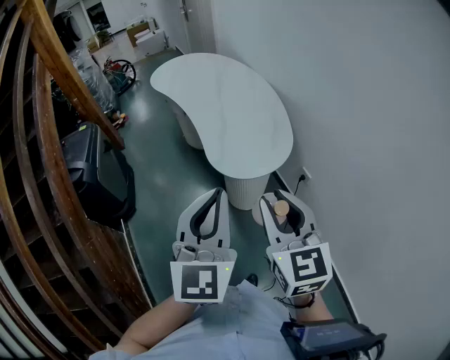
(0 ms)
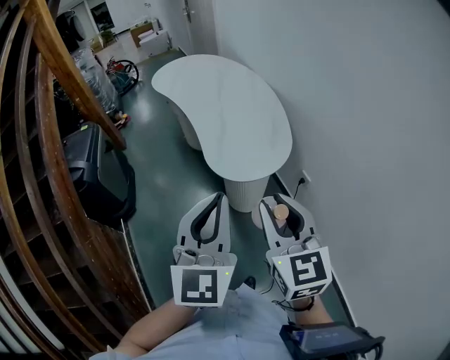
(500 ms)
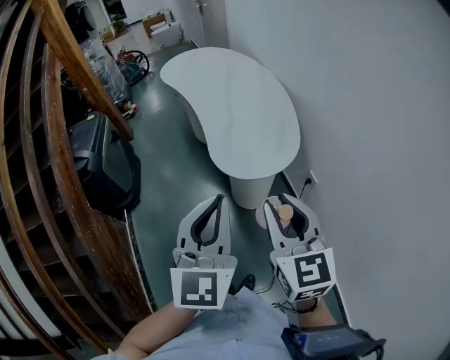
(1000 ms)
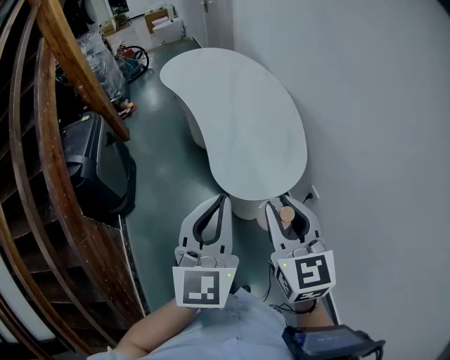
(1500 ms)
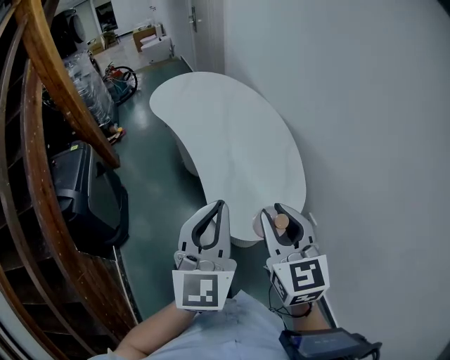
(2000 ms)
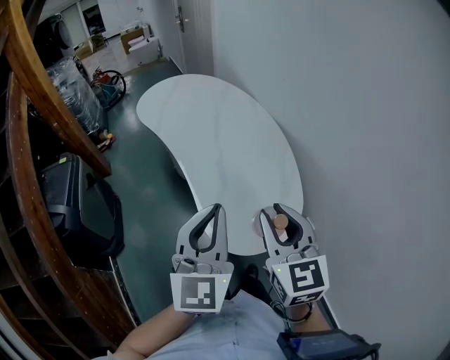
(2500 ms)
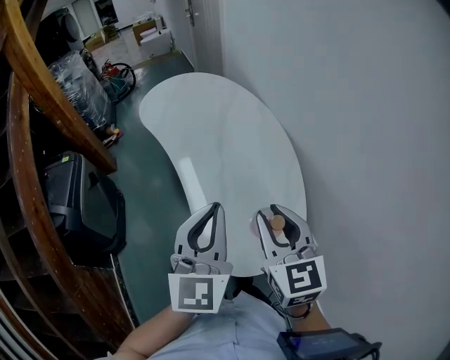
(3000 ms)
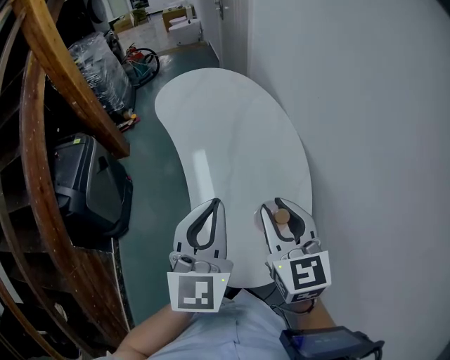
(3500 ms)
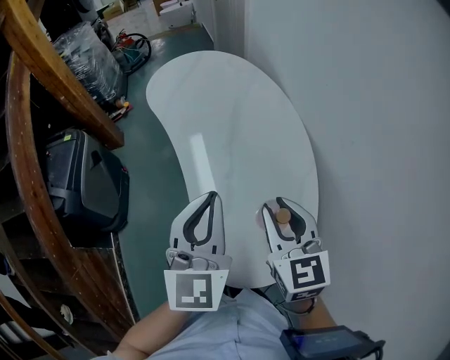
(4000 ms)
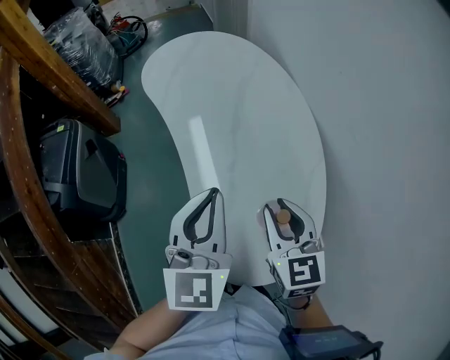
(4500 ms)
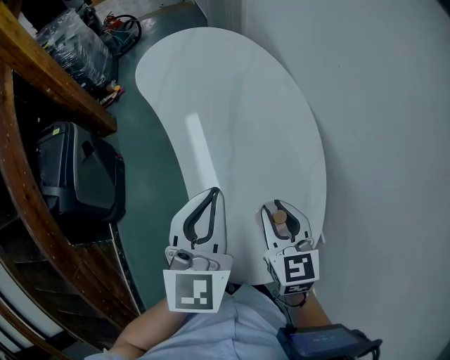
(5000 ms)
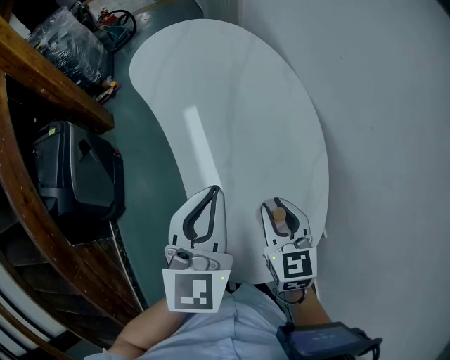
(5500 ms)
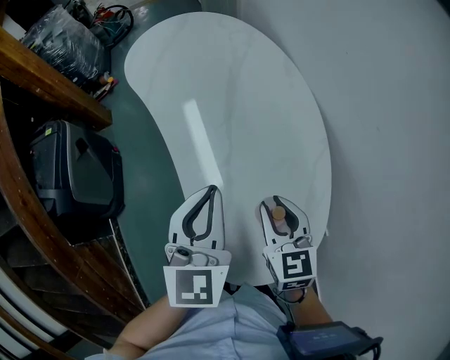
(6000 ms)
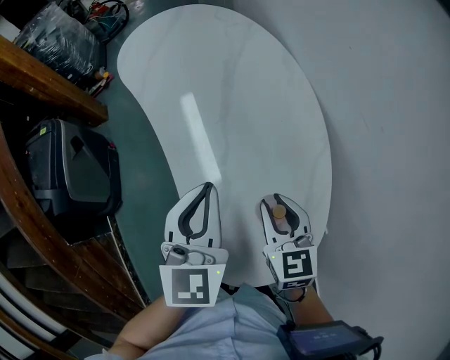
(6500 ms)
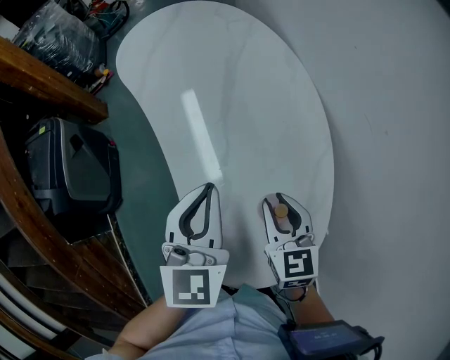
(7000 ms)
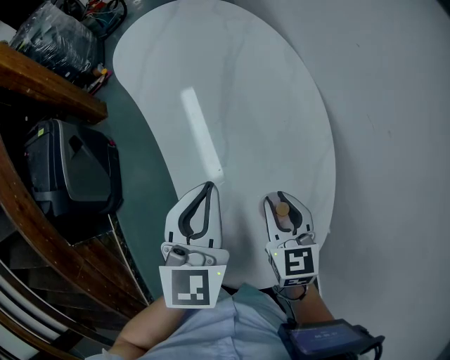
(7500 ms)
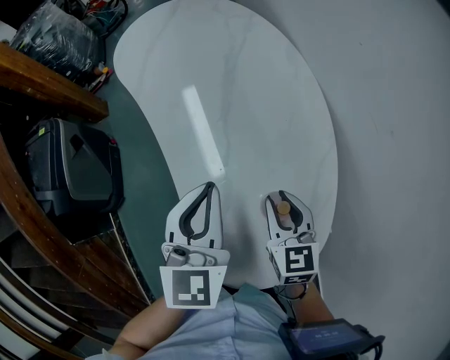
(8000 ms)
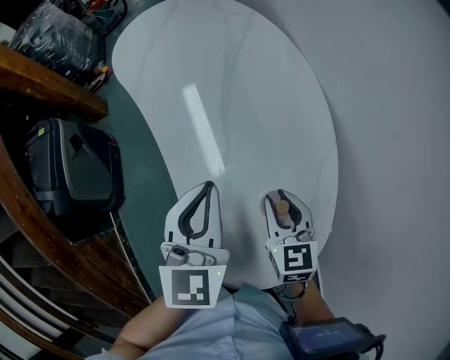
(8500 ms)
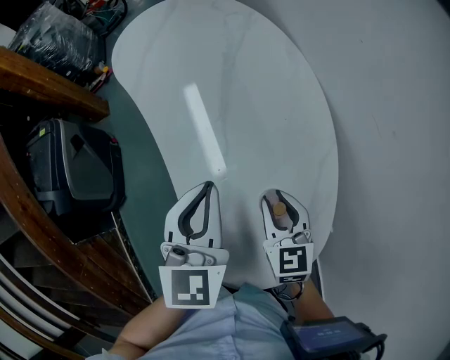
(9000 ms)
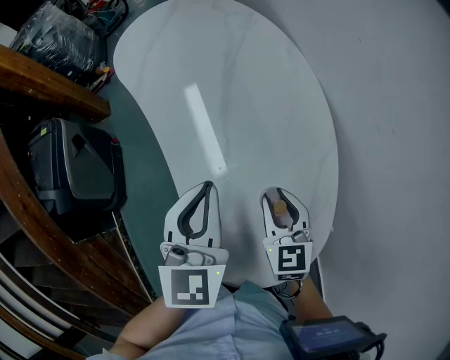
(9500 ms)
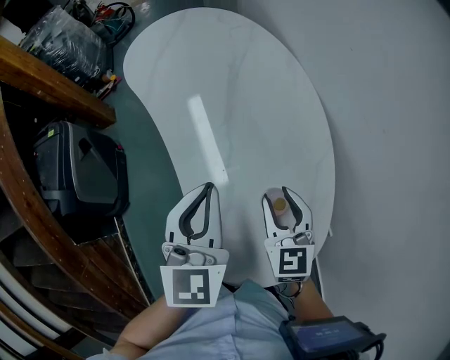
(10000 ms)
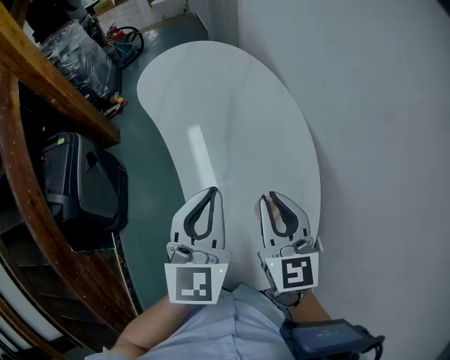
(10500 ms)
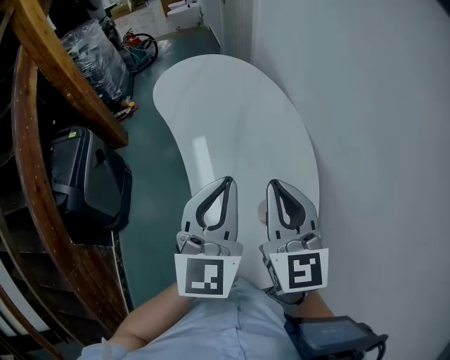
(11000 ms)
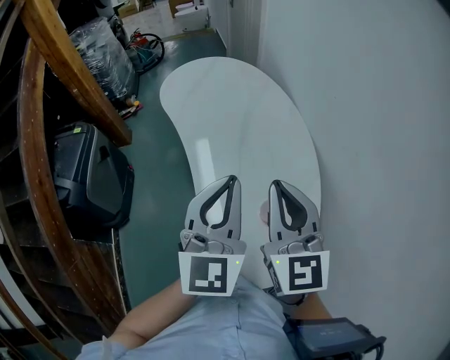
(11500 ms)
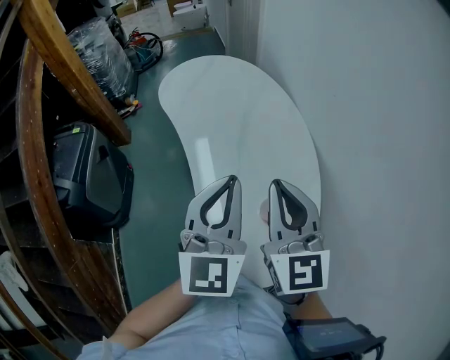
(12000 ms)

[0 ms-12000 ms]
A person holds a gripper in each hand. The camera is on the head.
0 ms to 2000 ms: Both grippers travel together forward, about 15 cm.
2000 ms to 4000 ms: Both grippers move forward, about 20 cm.
4000 ms to 6000 ms: The right gripper goes about 10 cm downward. The left gripper goes roughly 5 cm downward.
6000 ms to 10000 ms: There are only small adjustments of the grippers.
10000 ms to 12000 ms: The left gripper is displaced upward by some 10 cm, and swivels some 30 degrees. The right gripper shifts roughly 20 cm upward, swivels about 20 degrees, and closes.

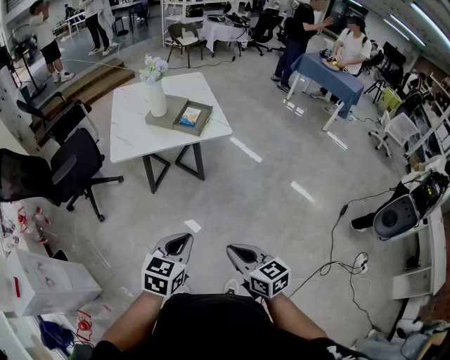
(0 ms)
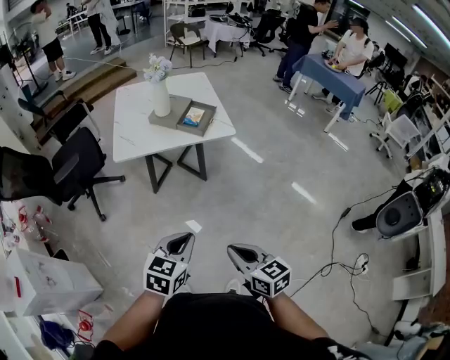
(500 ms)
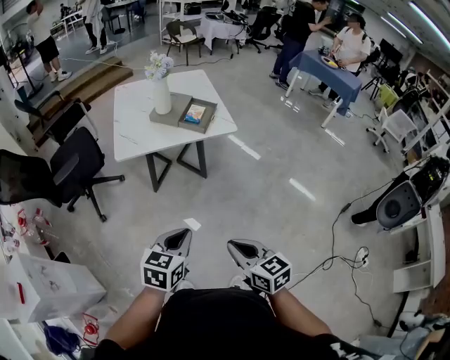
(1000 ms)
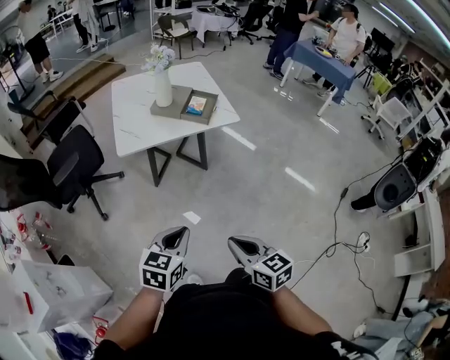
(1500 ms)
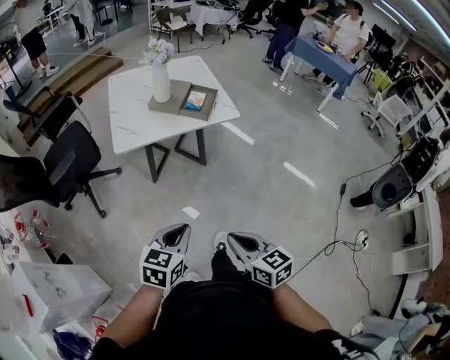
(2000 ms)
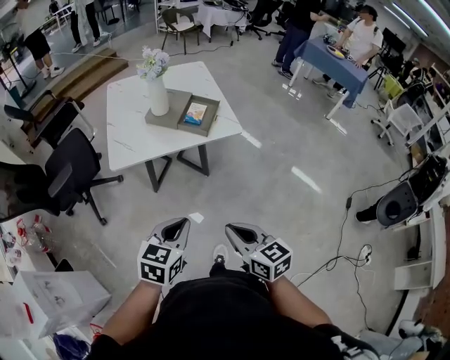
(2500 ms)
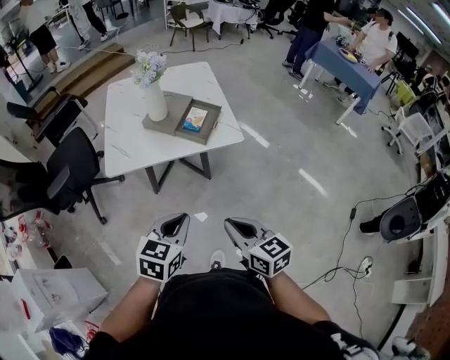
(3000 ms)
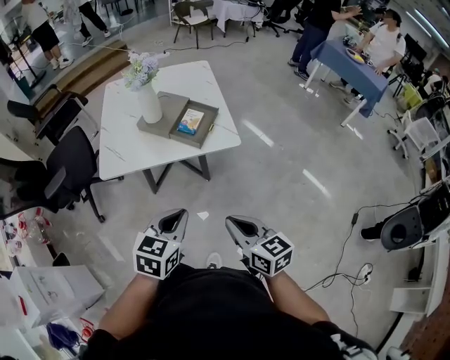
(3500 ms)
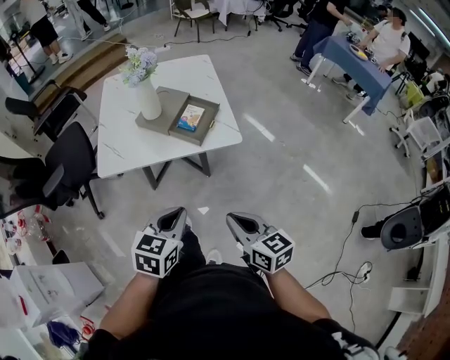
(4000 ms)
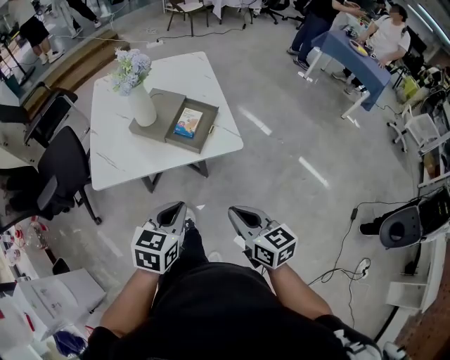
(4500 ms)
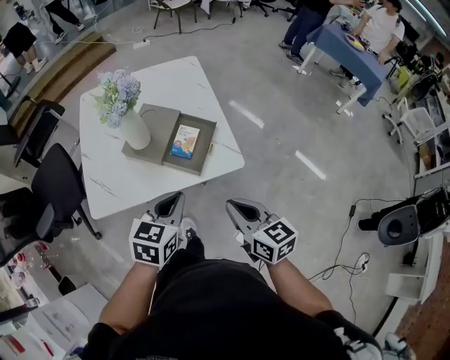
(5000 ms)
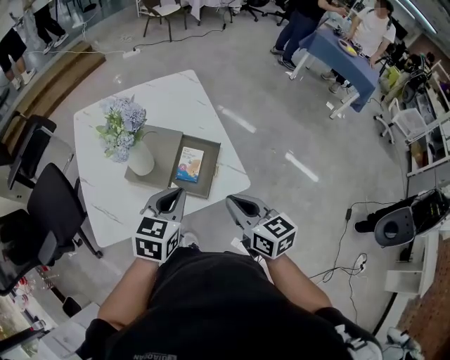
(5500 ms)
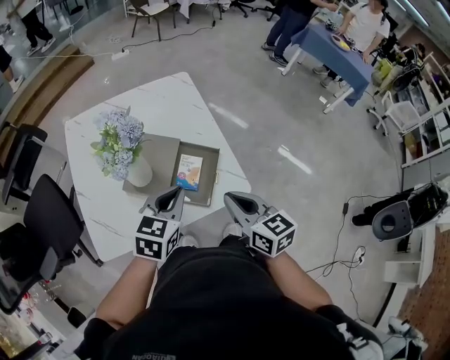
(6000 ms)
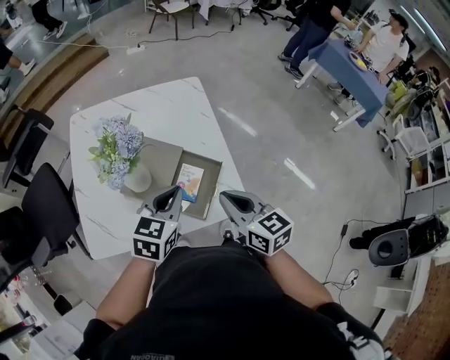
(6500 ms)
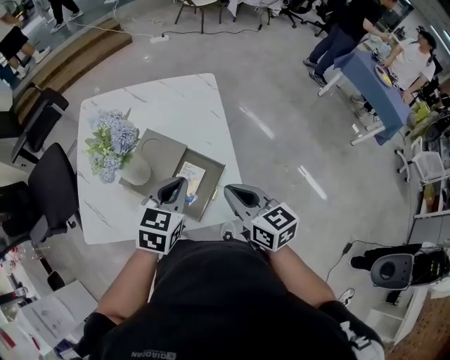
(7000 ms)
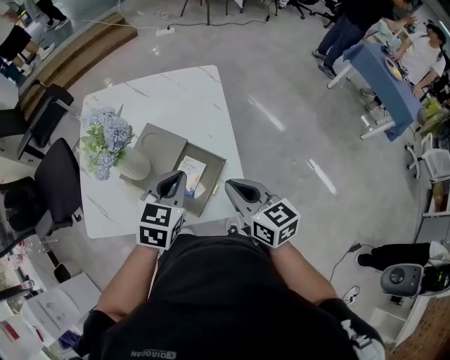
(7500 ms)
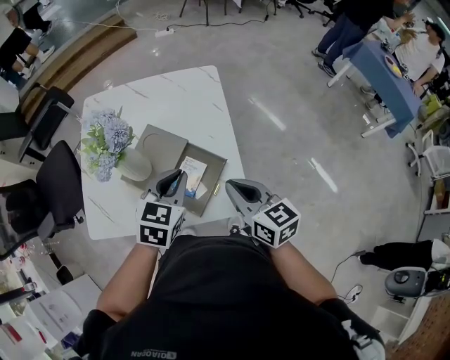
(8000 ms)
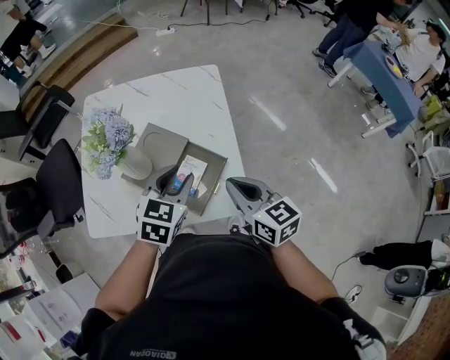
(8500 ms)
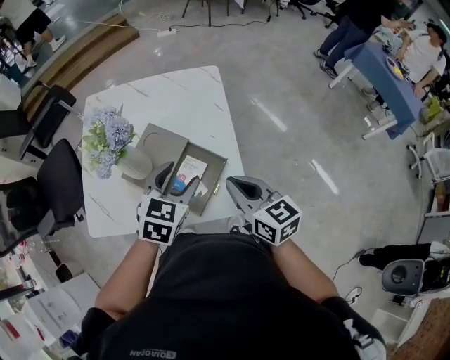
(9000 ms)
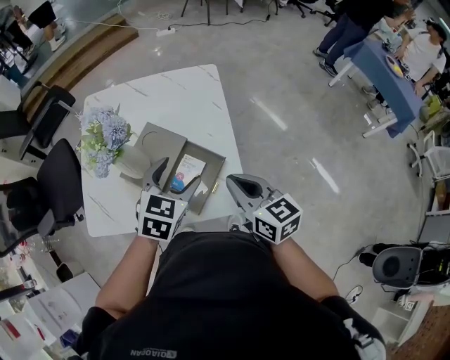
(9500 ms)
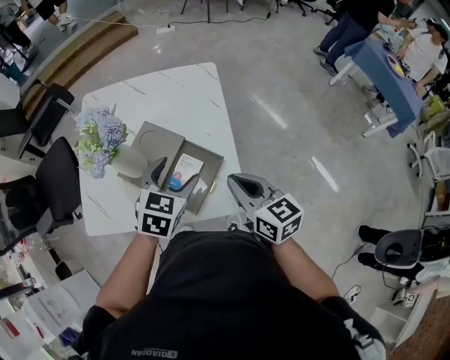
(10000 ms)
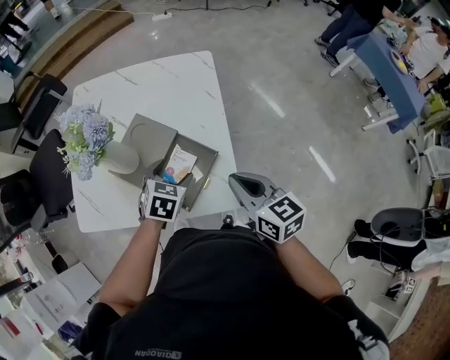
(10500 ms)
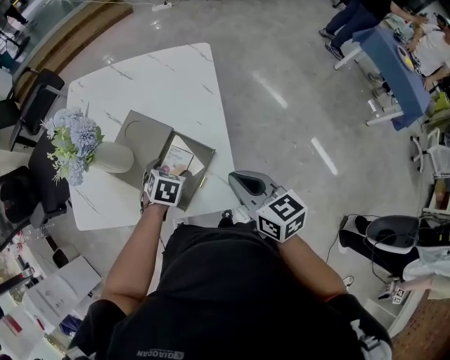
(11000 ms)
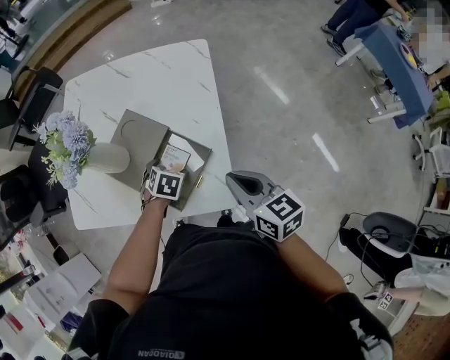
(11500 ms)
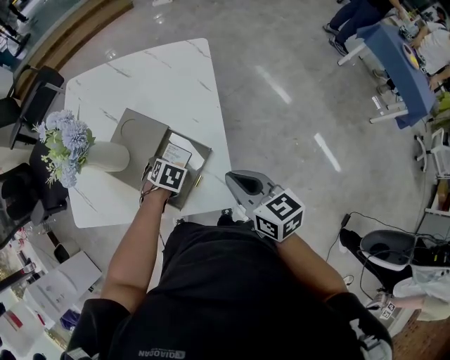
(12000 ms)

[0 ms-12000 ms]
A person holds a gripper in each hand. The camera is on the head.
0 ms to 2000 ms: The grippers both shift to the left by roughly 10 cm.
2000 ms to 4000 ms: The grippers both shift forward and to the right by approximately 30 cm.
4000 ms to 6000 ms: The grippers both shift forward by some 35 cm.
6000 ms to 8000 ms: The grippers both shift forward and to the right by roughly 10 cm.
8000 ms to 10000 ms: The left gripper opens.
10000 ms to 12000 ms: The right gripper moves about 5 cm. The left gripper goes approximately 25 cm downward, and tilts its fingers roughly 40 degrees downward.

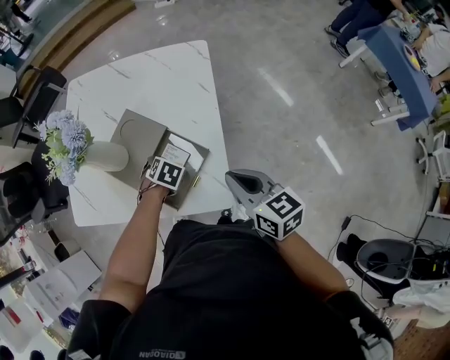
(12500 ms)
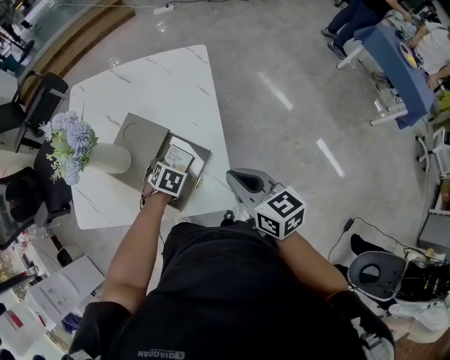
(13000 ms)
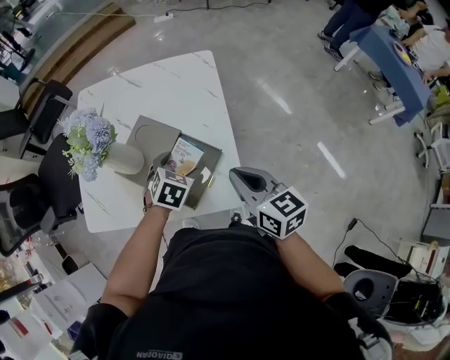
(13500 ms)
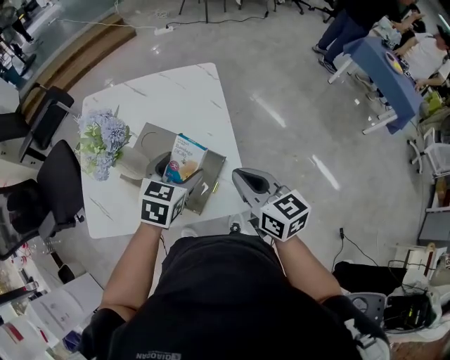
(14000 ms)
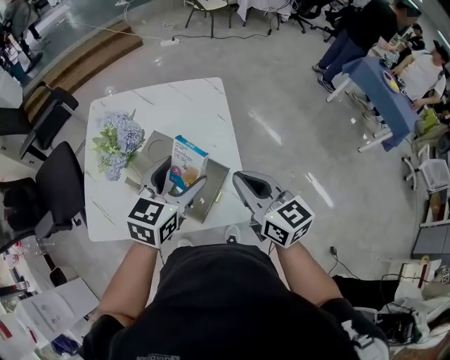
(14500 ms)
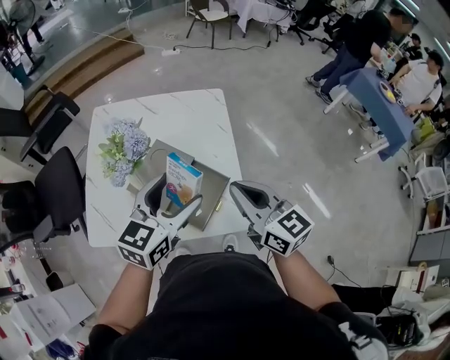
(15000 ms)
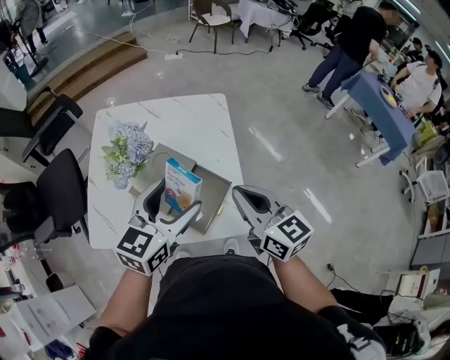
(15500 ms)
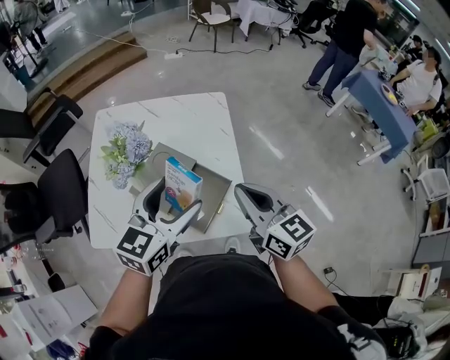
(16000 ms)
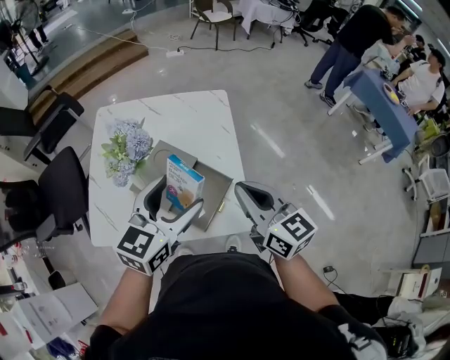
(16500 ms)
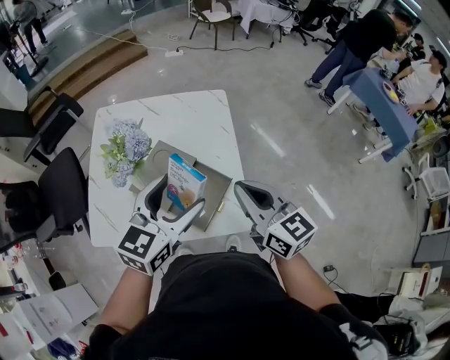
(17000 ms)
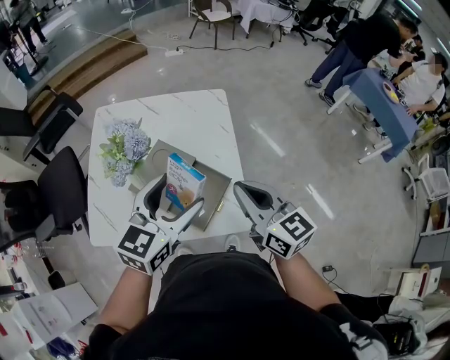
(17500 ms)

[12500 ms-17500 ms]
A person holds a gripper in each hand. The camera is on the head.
12500 ms to 15000 ms: The left gripper heads upward, covering roughly 35 cm, and angles its fingers upward, by roughly 60 degrees. Meanwhile the right gripper moves upward, approximately 15 cm.
15000 ms to 17500 ms: The grippers move only a little.
